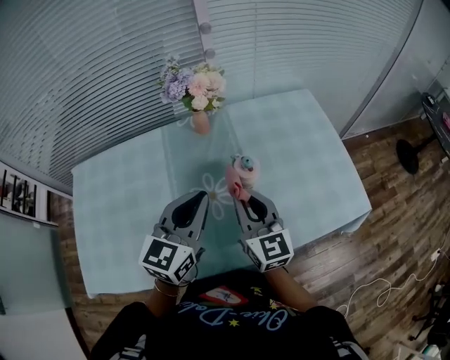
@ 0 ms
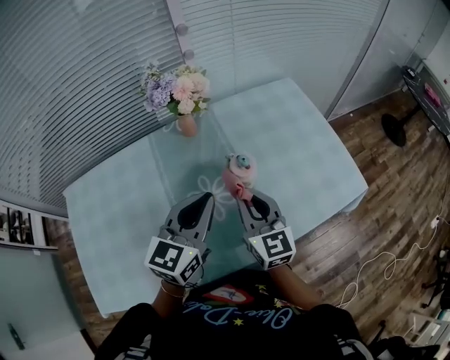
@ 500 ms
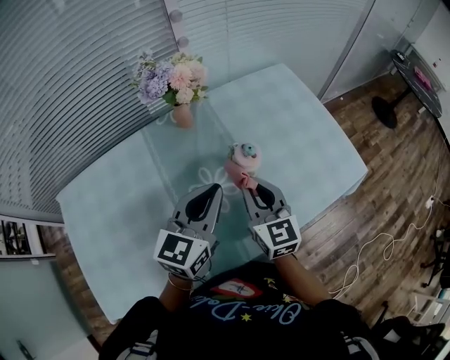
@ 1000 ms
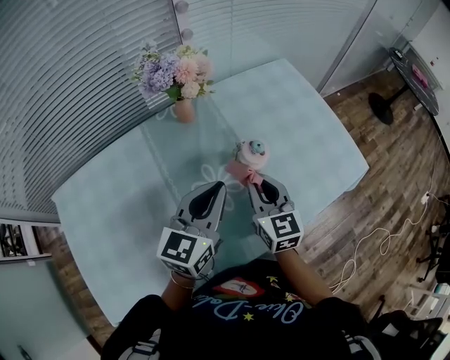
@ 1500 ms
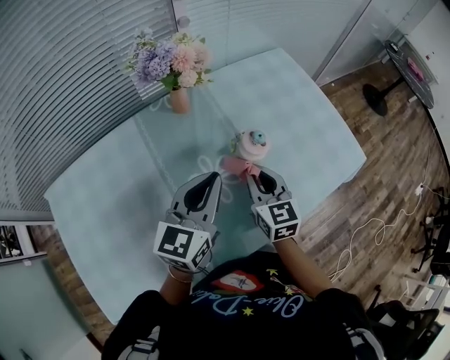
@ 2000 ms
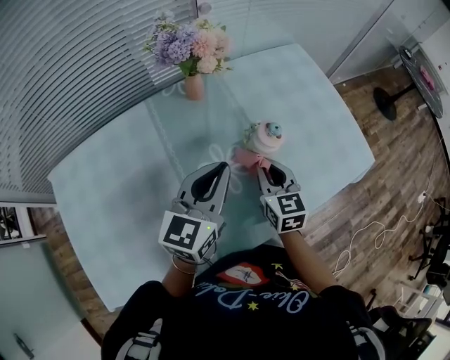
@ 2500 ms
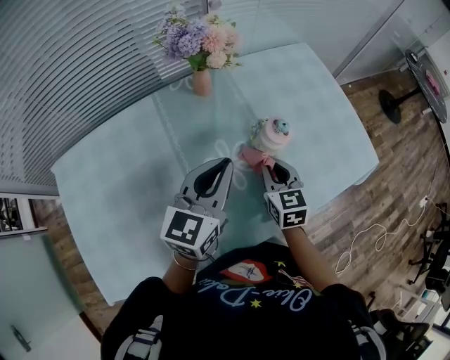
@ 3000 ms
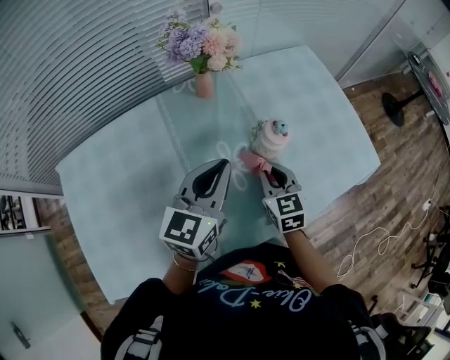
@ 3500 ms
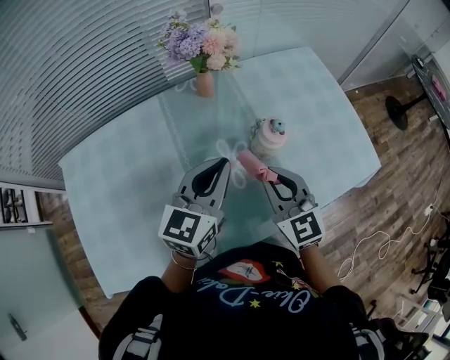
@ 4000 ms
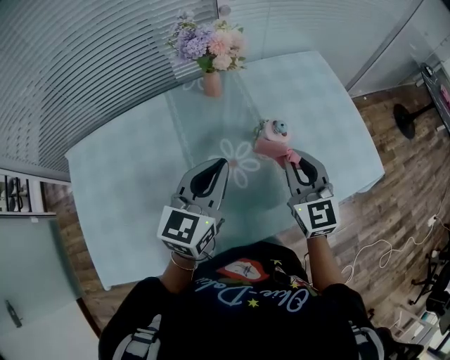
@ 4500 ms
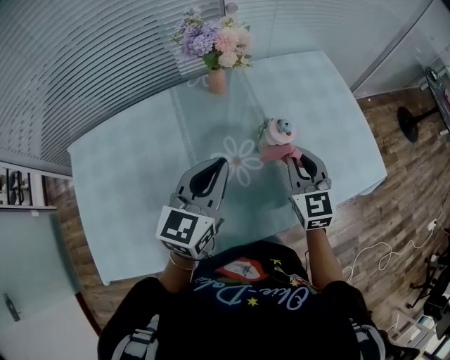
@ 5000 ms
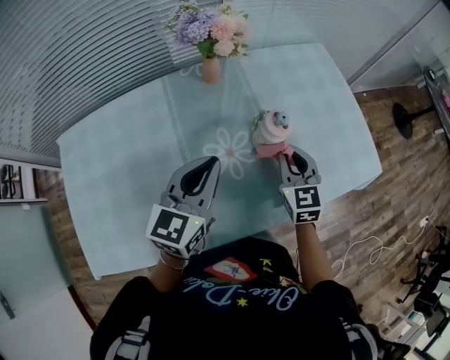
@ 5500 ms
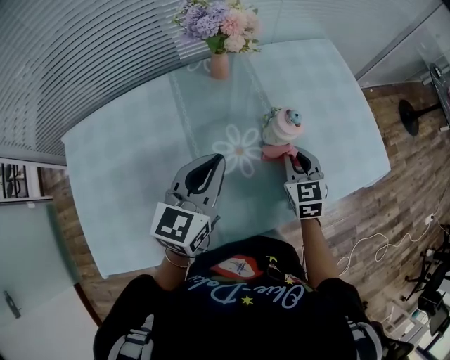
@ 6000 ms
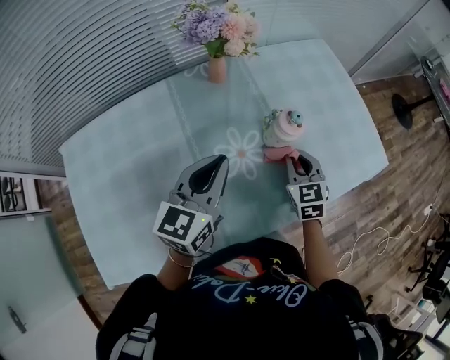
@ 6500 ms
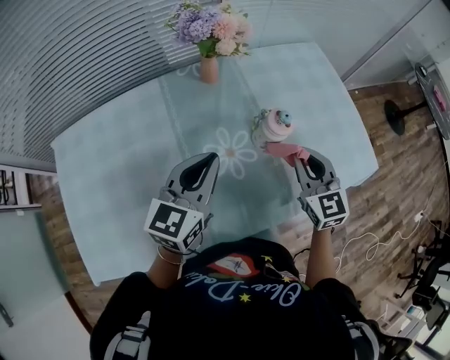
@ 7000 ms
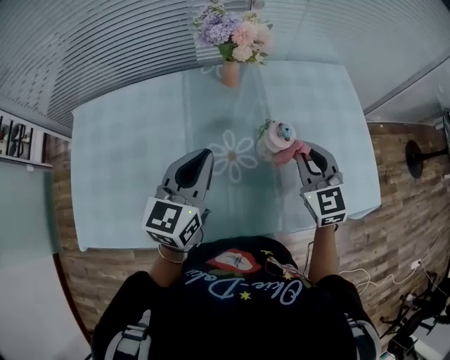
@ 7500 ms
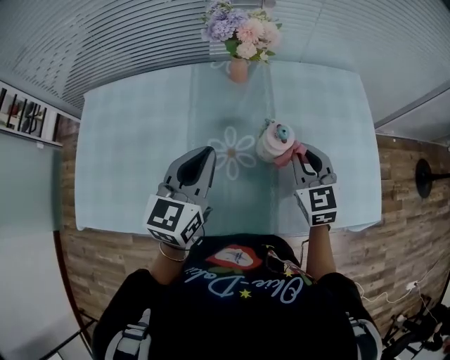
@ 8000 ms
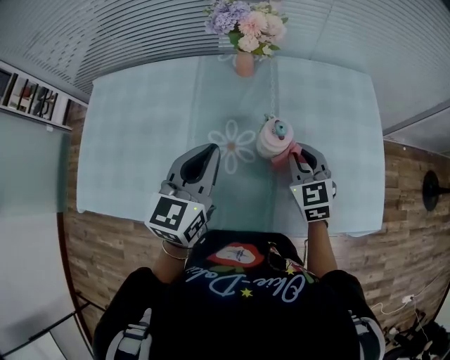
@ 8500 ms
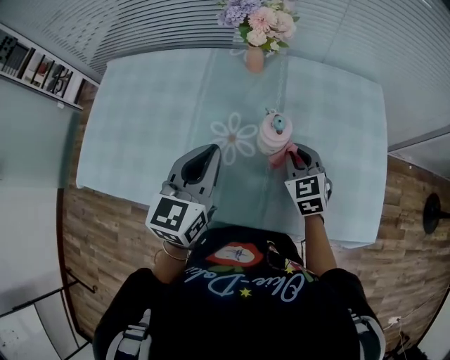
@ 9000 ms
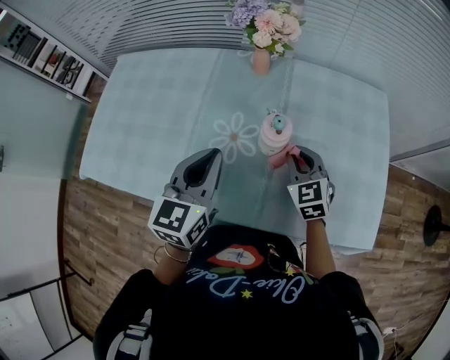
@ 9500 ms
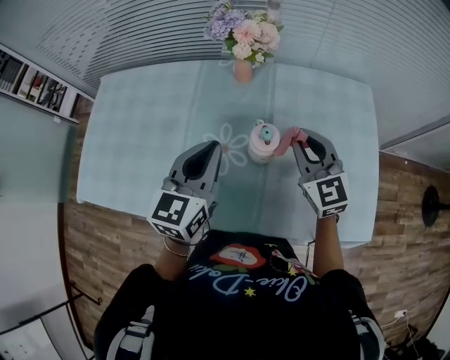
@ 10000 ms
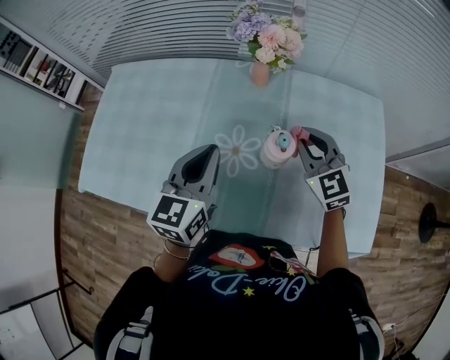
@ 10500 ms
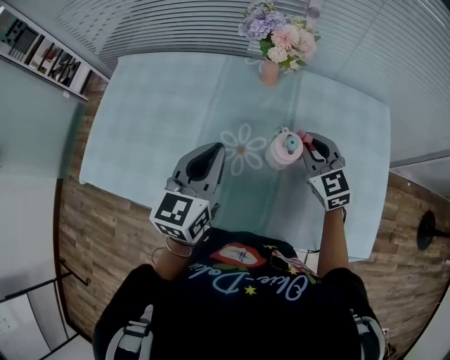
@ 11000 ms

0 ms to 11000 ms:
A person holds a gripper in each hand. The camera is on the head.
0 ms to 2000 ms: The left gripper shifts by roughly 5 cm. Meanwhile the right gripper shifts approximately 10 cm downward, and turns by approximately 20 degrees.
2000 ms to 3500 ms: The grippers make only small movements.
3500 ms to 5500 ms: The right gripper travels to the right by about 5 cm, and moves approximately 10 cm upward and comes back.
5500 ms to 7500 ms: The right gripper goes some 5 cm upward, and swivels roughly 20 degrees.
7500 ms to 9000 ms: The left gripper goes about 5 cm to the right; the right gripper goes approximately 10 cm downward.
9000 ms to 11000 ms: The right gripper shifts some 10 cm upward and forward.

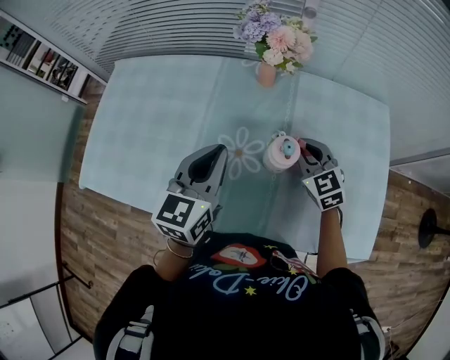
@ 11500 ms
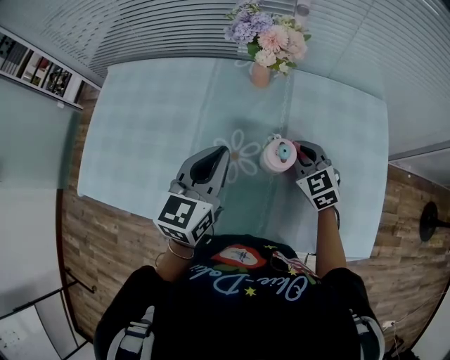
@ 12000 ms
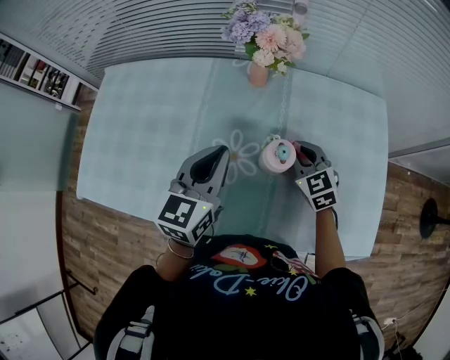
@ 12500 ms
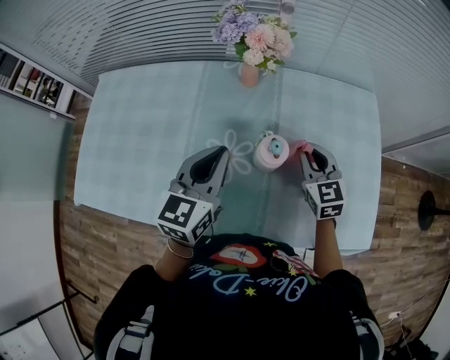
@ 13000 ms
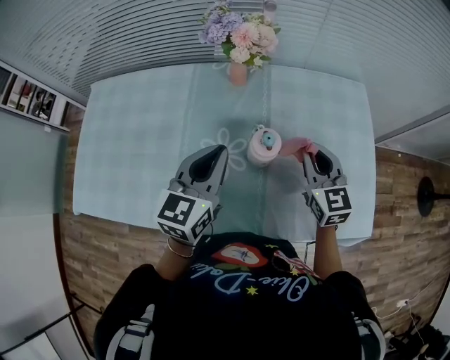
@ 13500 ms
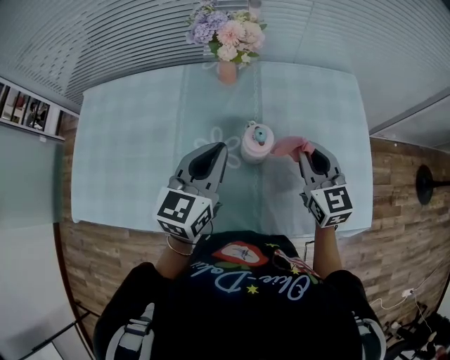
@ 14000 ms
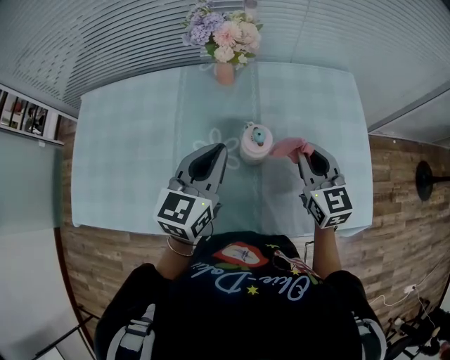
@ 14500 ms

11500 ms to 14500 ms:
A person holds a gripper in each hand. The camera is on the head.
11500 ms to 13000 ms: The right gripper travels to the right by approximately 5 cm.
13000 ms to 14500 ms: The right gripper heads upward, covering approximately 5 cm.

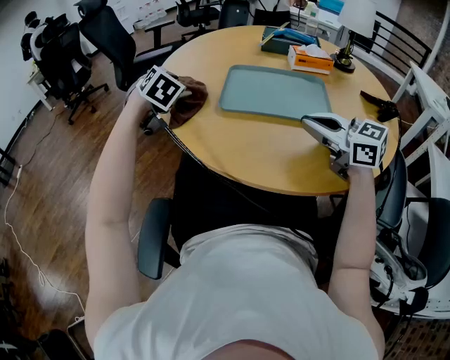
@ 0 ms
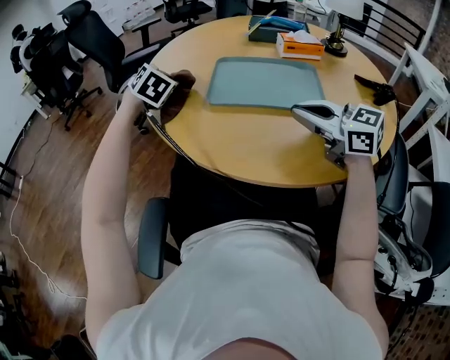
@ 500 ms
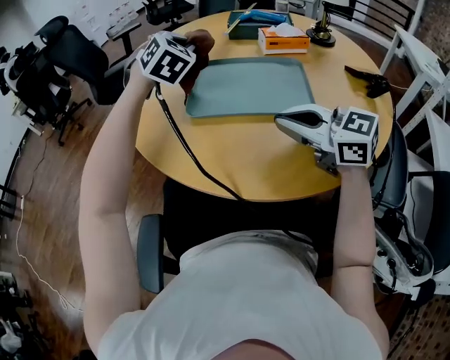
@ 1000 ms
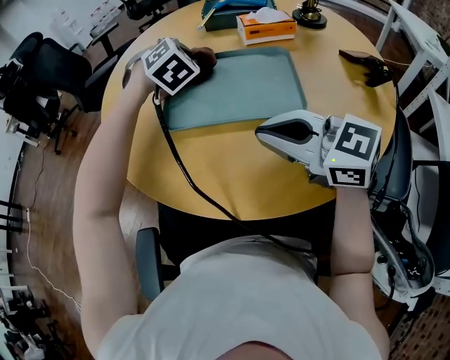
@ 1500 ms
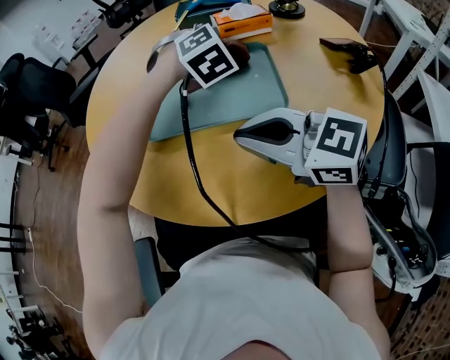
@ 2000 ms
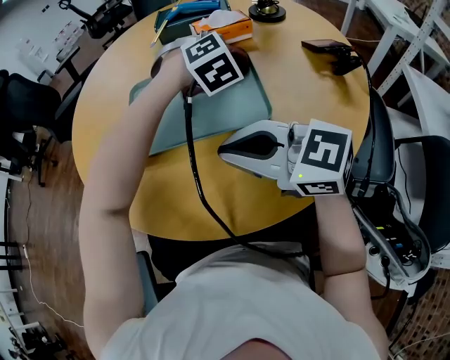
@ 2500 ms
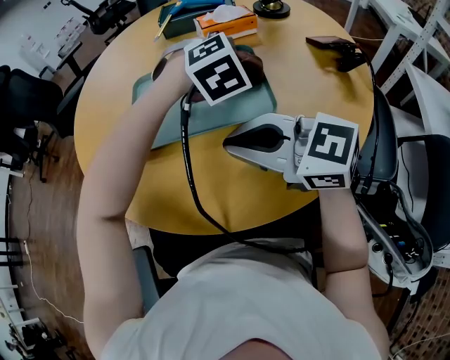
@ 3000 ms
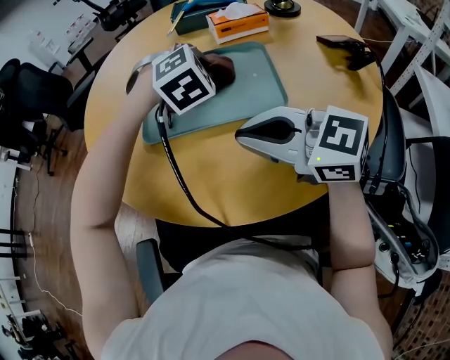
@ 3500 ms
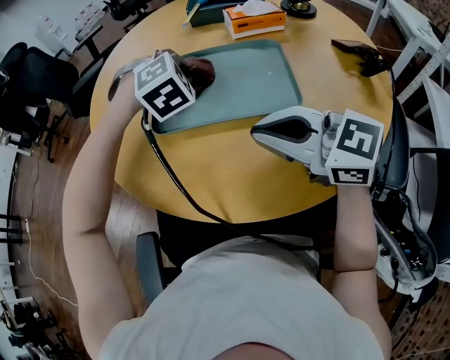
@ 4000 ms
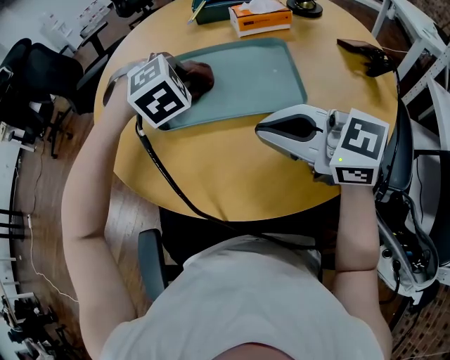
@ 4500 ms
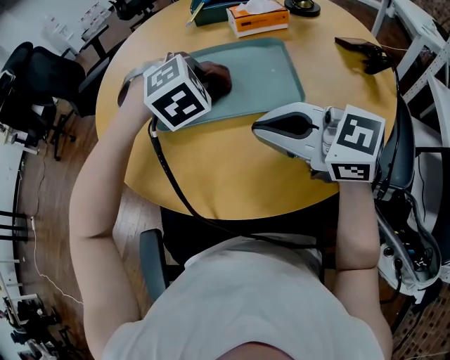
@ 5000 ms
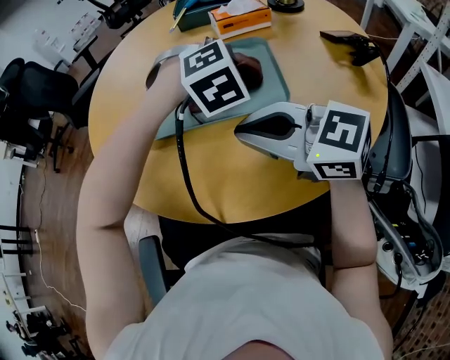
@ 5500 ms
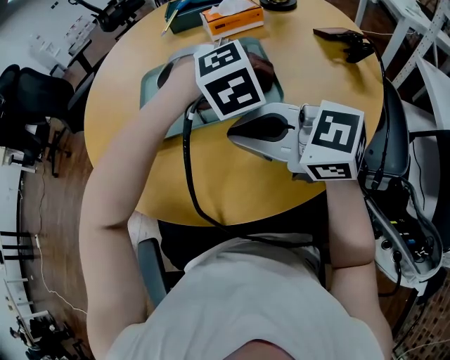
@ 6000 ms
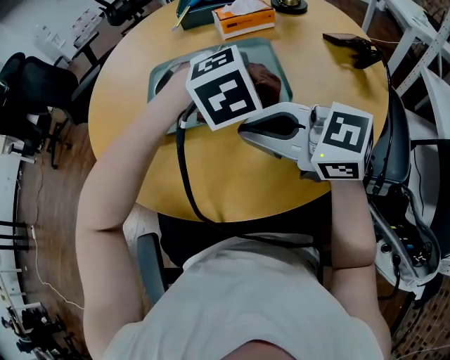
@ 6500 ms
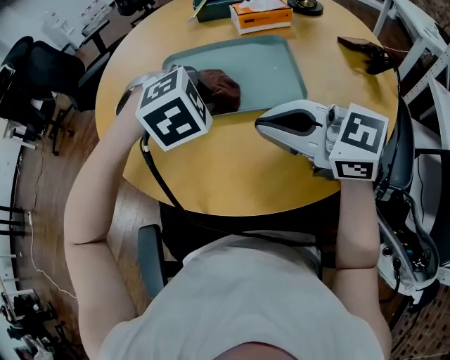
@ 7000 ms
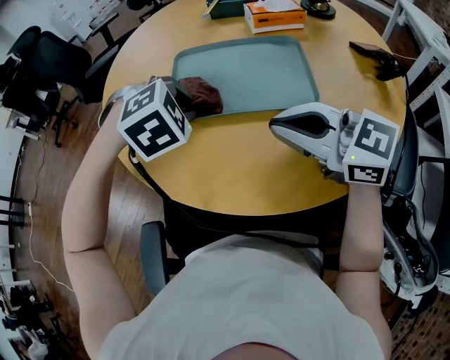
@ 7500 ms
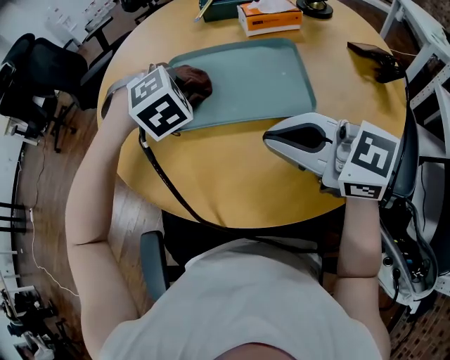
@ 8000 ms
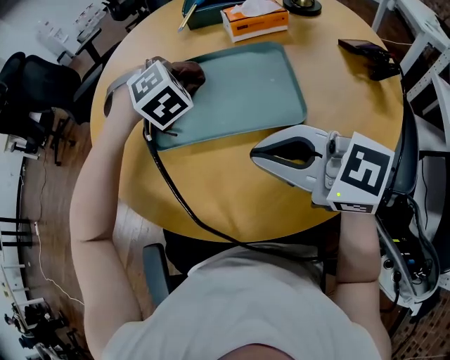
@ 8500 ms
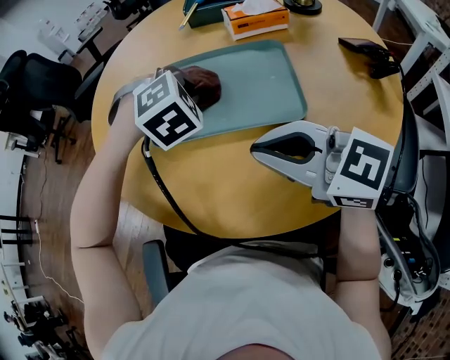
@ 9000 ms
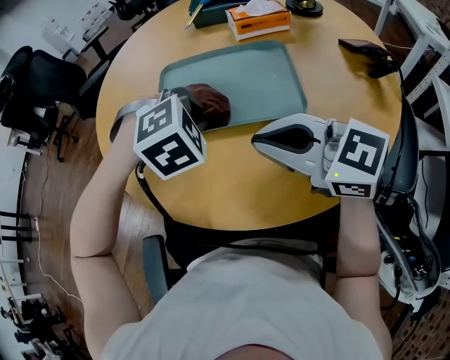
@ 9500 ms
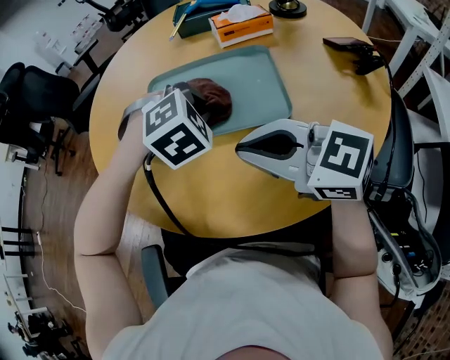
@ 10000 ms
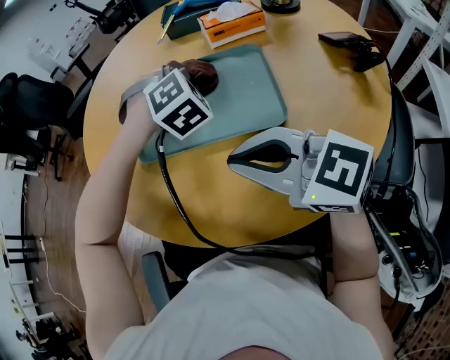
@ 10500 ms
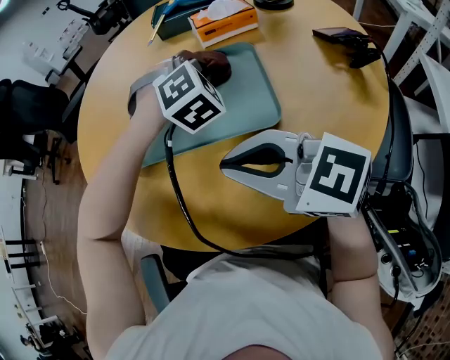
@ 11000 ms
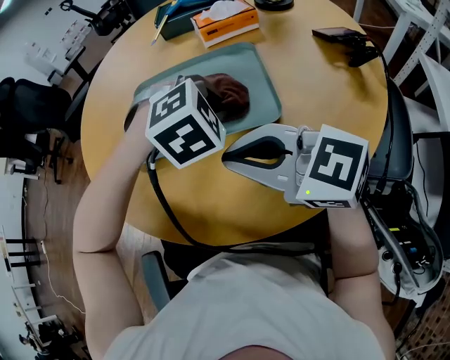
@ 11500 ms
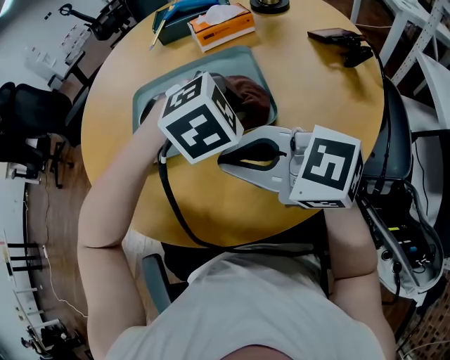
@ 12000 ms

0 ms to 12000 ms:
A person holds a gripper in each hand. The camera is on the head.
0 ms to 2000 ms: The left gripper shifts approximately 35 cm to the right, swivels about 40 degrees, and closes up.
2000 ms to 4000 ms: The left gripper moves to the left, roughly 15 cm.
4000 ms to 6000 ms: The left gripper heads to the right and backward, covering approximately 20 cm.
6000 ms to 8000 ms: The left gripper is displaced to the left and forward by about 20 cm, and swivels roughly 20 degrees.
8000 ms to 10000 ms: The left gripper is displaced backward and to the right by roughly 10 cm.
10000 ms to 12000 ms: The left gripper moves to the right and backward, some 10 cm.

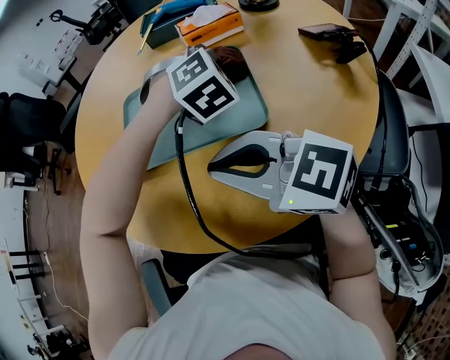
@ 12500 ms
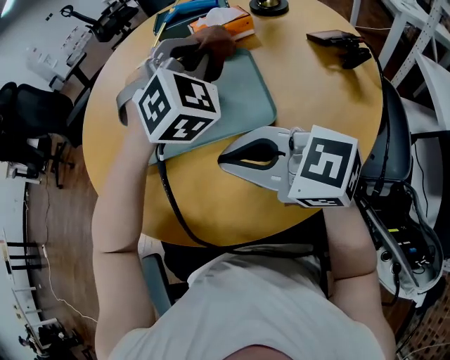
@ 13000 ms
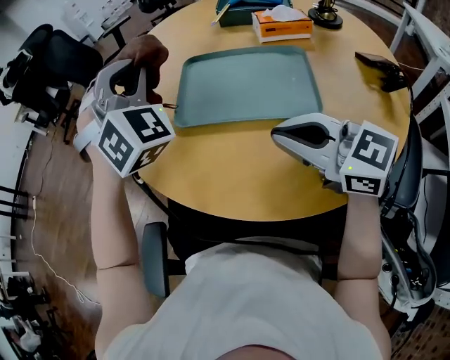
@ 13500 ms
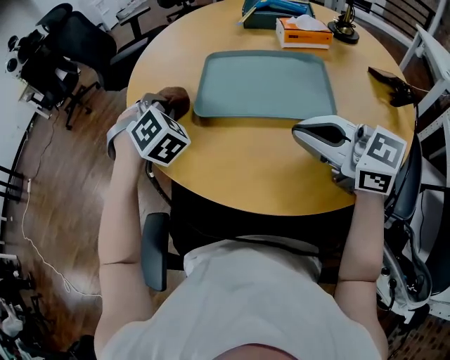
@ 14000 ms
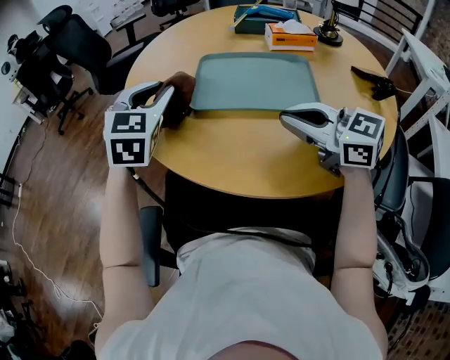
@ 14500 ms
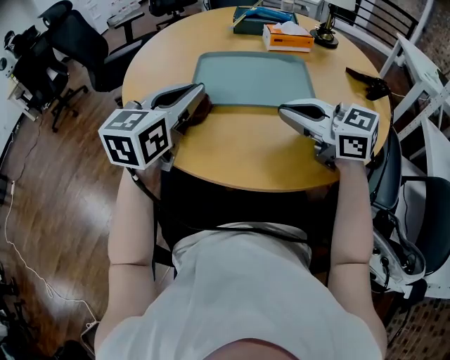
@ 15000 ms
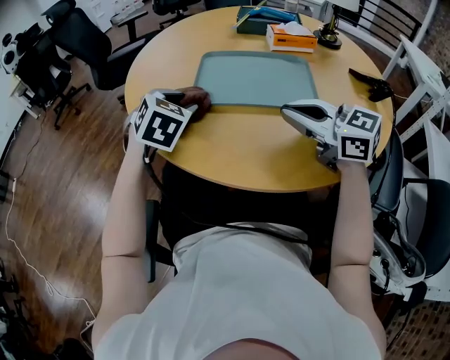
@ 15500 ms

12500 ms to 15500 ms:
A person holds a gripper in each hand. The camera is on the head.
12500 ms to 14000 ms: The left gripper moves to the left, some 35 cm, and turns by roughly 40 degrees.
14000 ms to 15500 ms: The left gripper goes approximately 5 cm backward, and turns by roughly 30 degrees.
